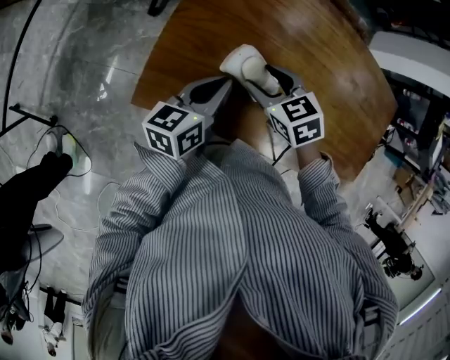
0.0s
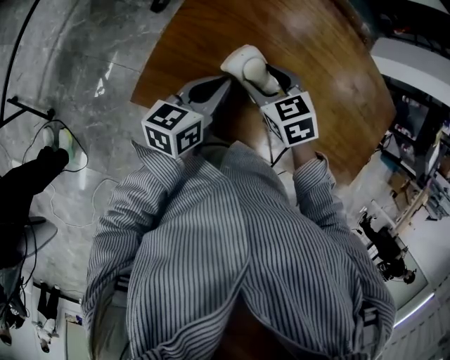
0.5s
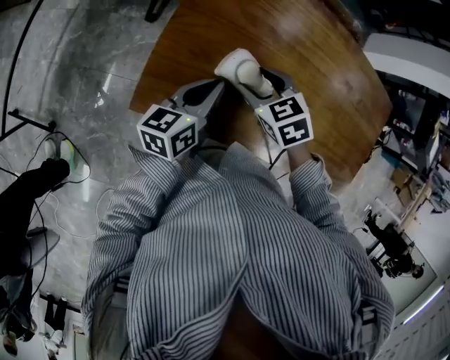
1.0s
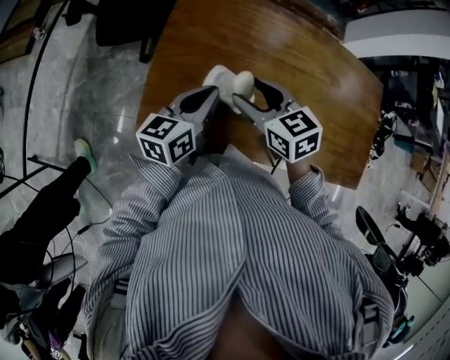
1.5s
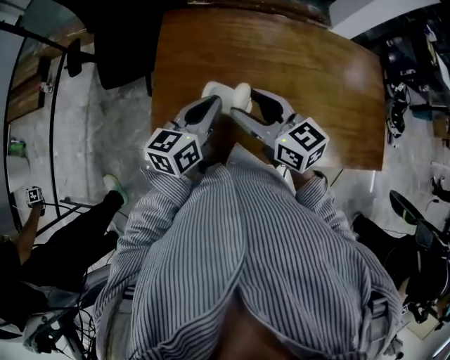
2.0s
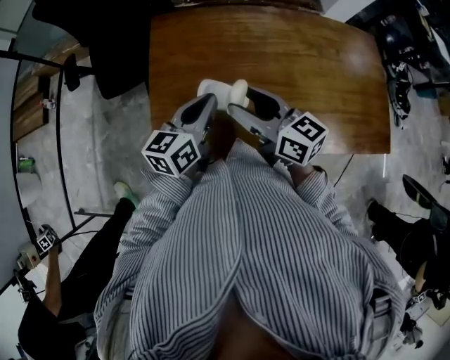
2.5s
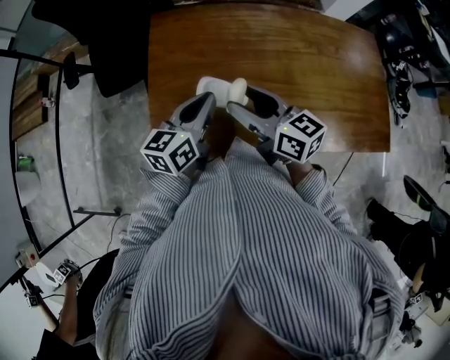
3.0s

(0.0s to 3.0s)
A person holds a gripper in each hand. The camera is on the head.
0.0s - 1.5s: The left gripper moves upward, some 5 cm; the right gripper heads upward, covering roughly 10 cm, and rotates some 20 degrees.
1.5s - 3.0s: The right gripper changes place by some 5 cm, and swivels some 40 degrees.

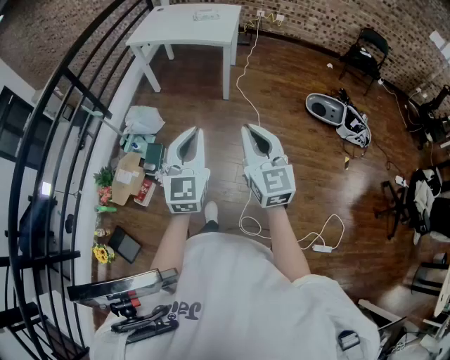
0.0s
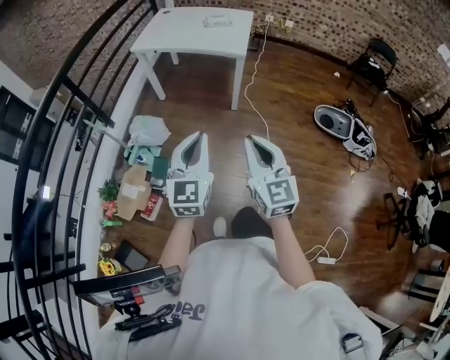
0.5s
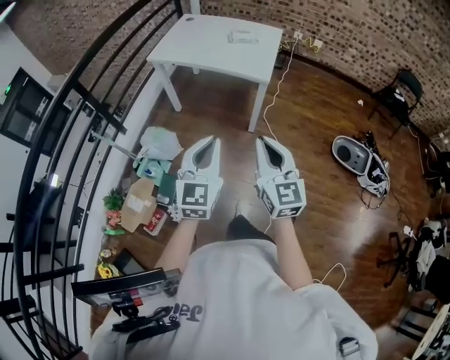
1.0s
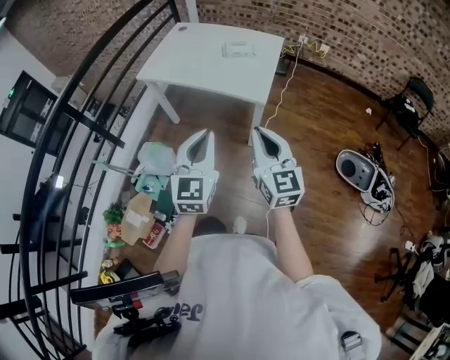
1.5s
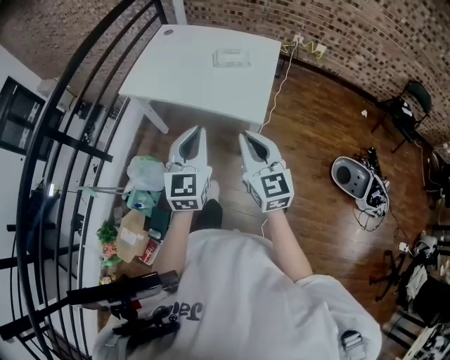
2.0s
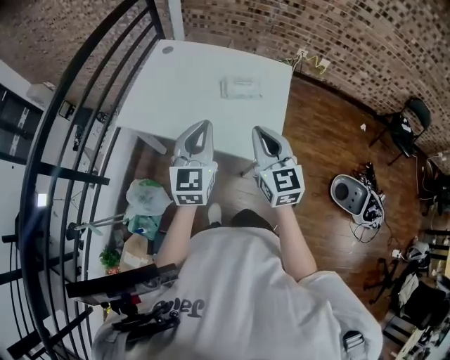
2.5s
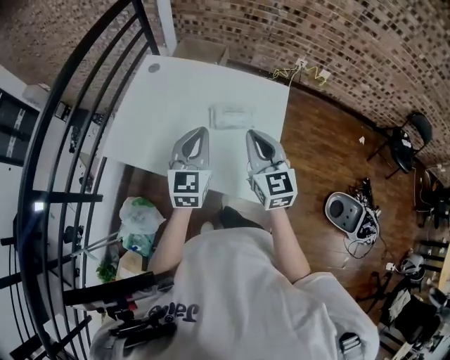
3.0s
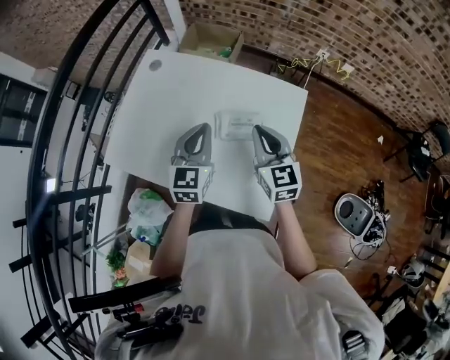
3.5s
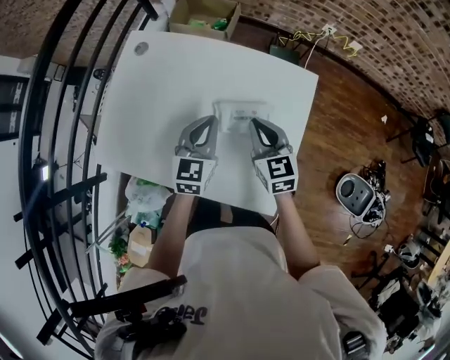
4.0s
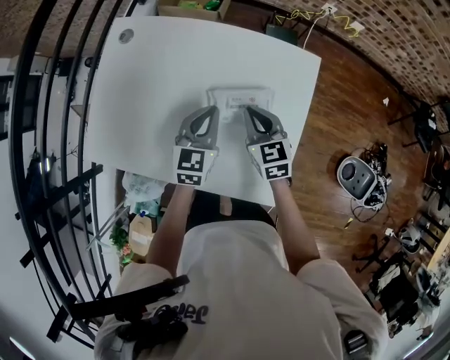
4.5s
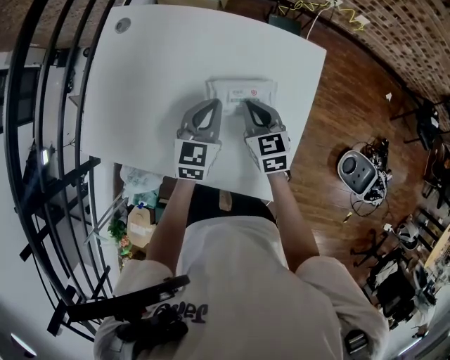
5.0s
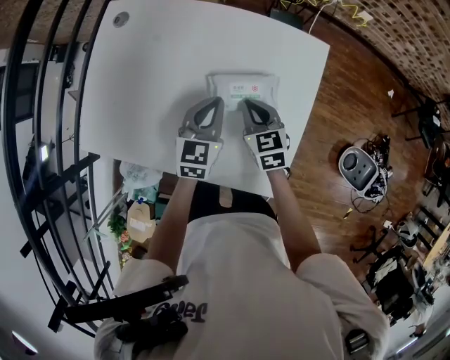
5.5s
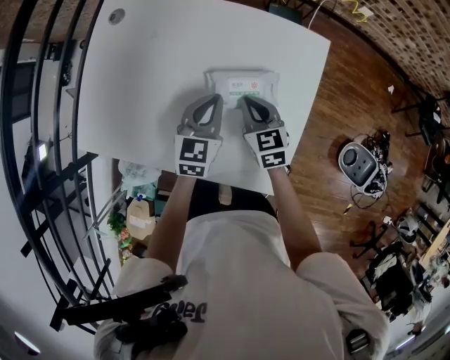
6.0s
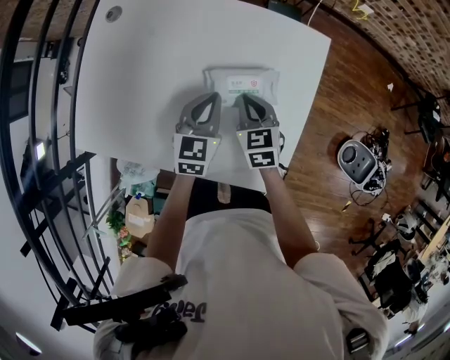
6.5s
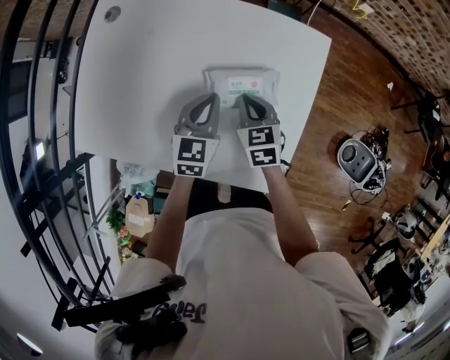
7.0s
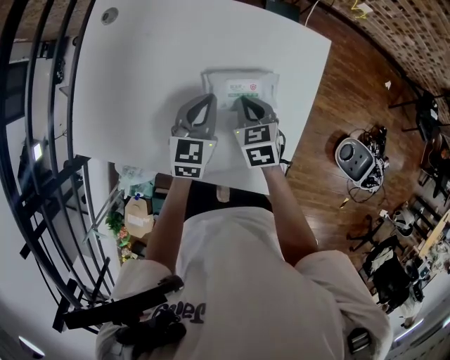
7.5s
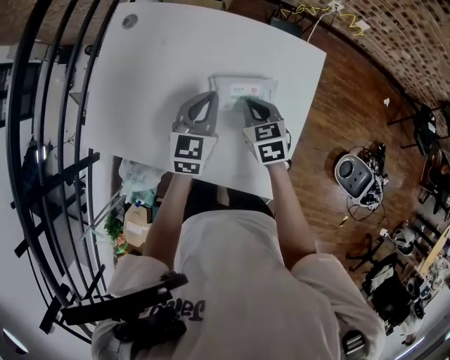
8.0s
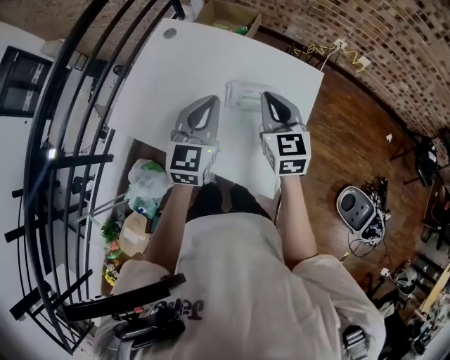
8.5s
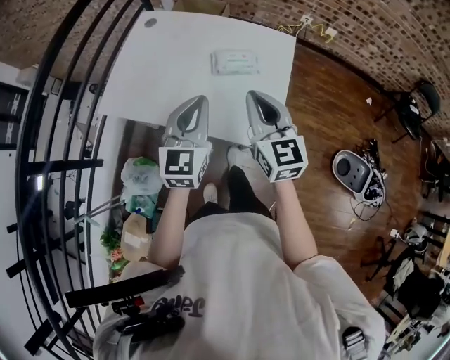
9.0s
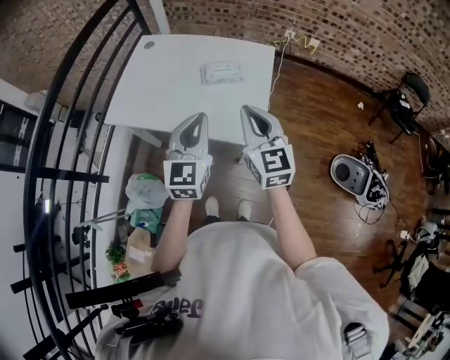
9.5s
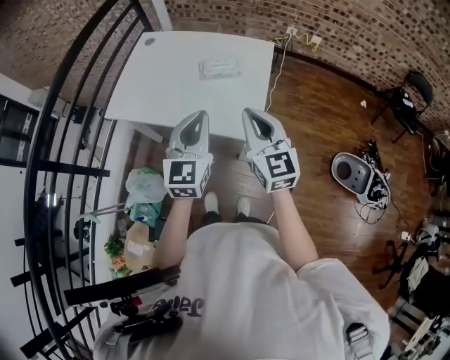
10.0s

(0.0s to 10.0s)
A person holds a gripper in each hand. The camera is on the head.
0.0s - 2.0s: The pair of grippers is taken forward, about 70 cm.
2.0s - 4.0s: The pair of grippers is taken forward, approximately 50 cm. The right gripper turns by some 20 degrees.
4.0s - 6.0s: The grippers both shift downward by about 10 cm.
6.0s - 8.0s: The left gripper ends up roughly 5 cm from where it was.
8.0s - 10.0s: Both grippers move backward and upward, approximately 40 cm. The left gripper changes its angle by some 20 degrees. Meanwhile the right gripper angles its fingers upward, by some 40 degrees.

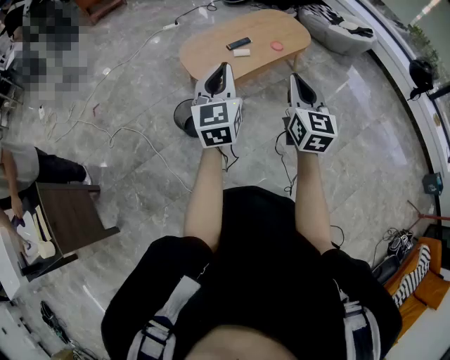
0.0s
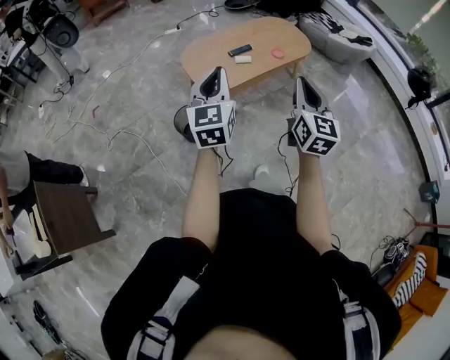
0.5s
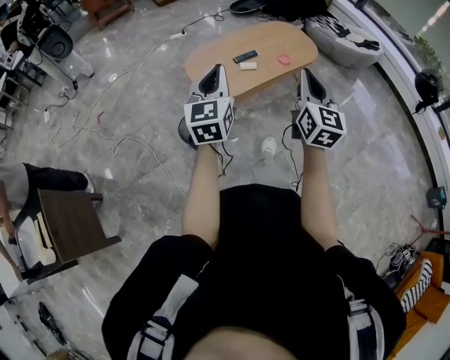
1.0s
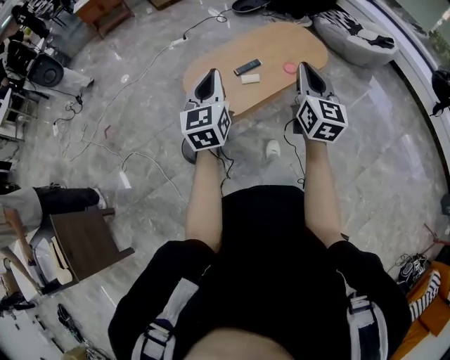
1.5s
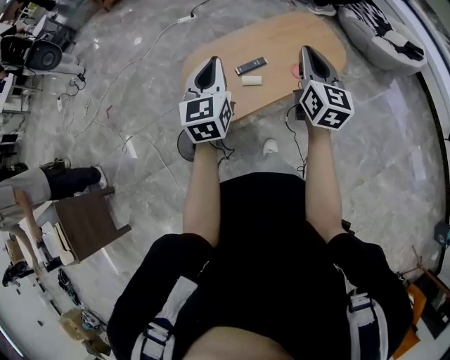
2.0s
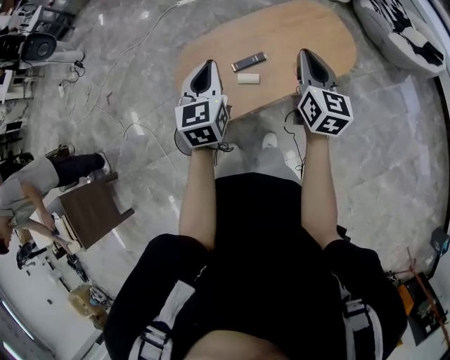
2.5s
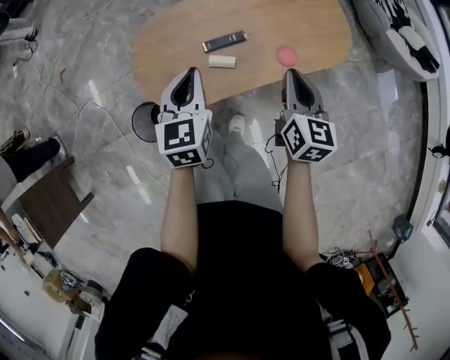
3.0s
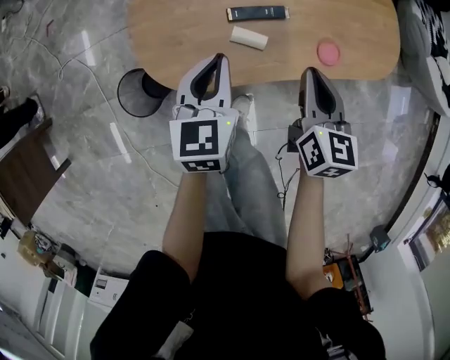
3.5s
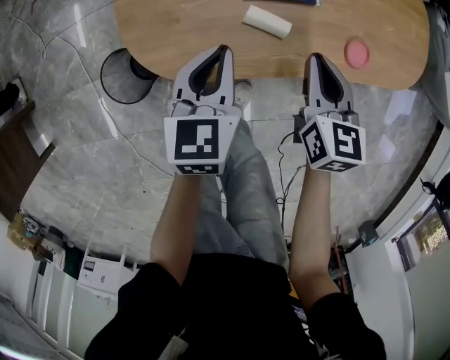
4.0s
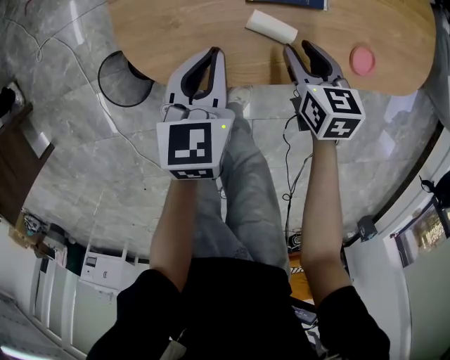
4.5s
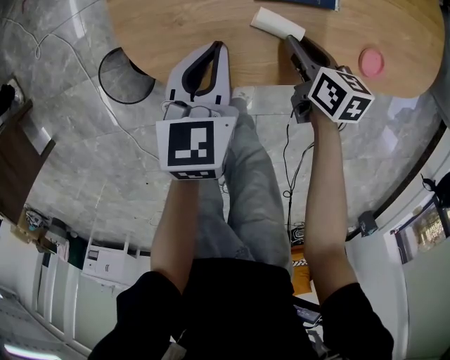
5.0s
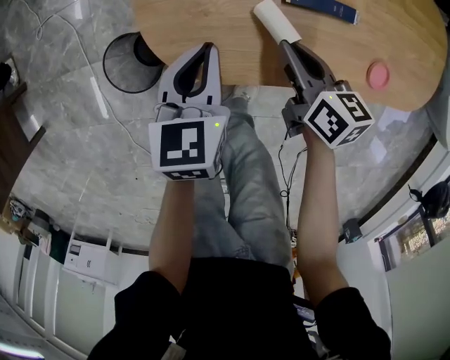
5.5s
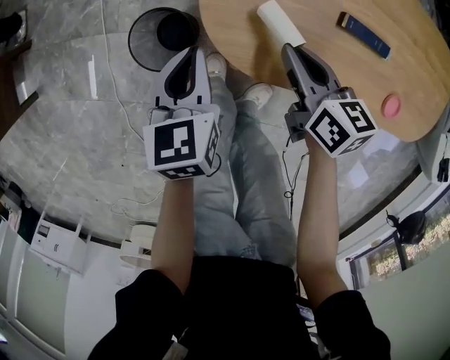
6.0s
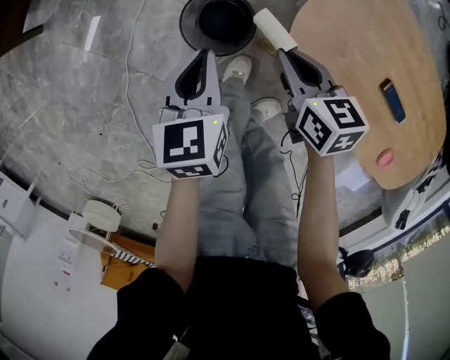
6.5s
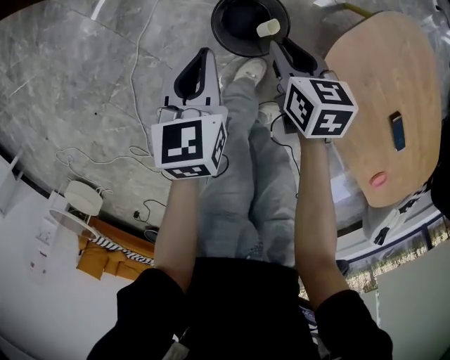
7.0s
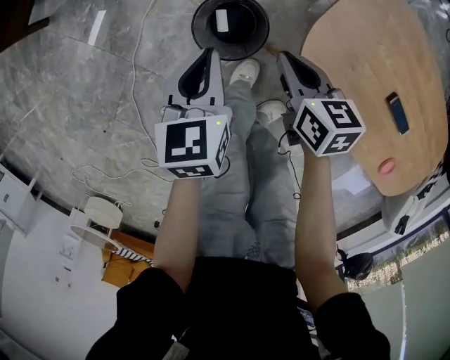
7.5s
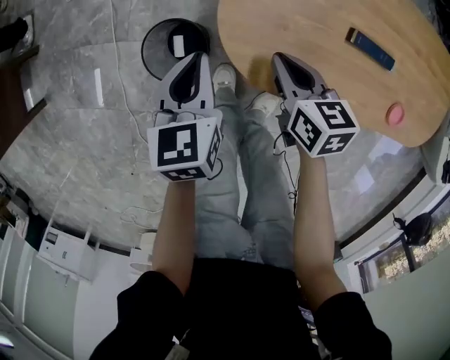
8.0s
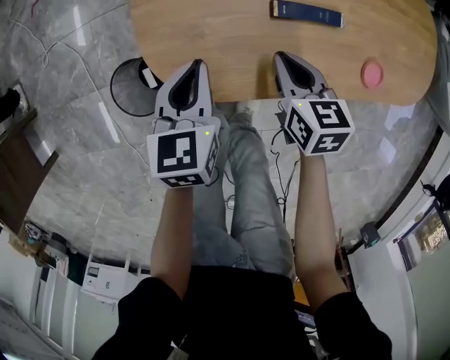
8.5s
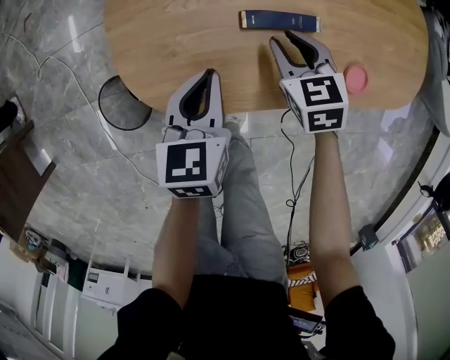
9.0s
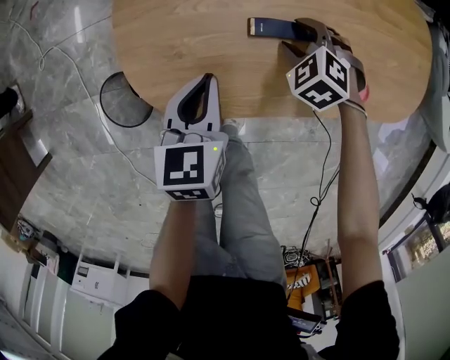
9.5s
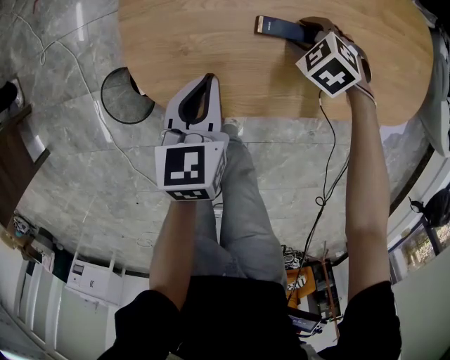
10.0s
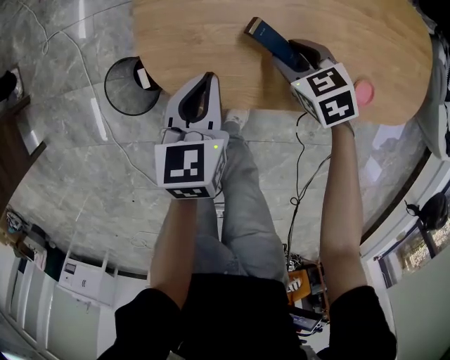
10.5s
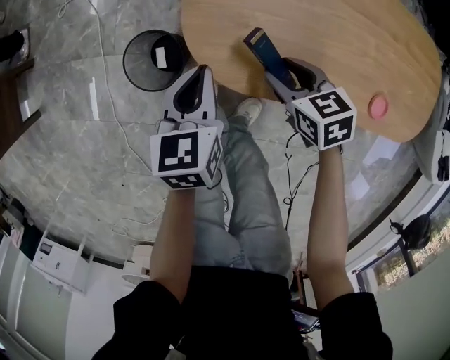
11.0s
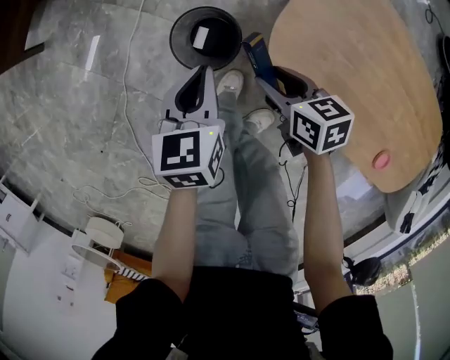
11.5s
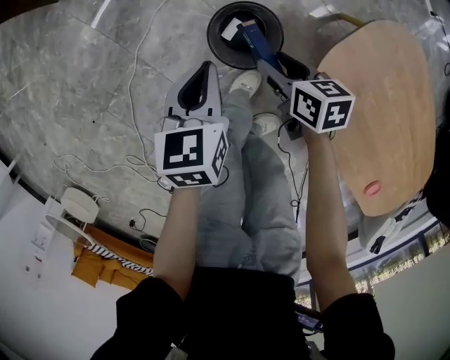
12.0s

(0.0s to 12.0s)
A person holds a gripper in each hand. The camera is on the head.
0.0s - 2.0s: The two grippers travel together, forward, roughly 40 cm.
2.0s - 4.0s: Both grippers move downward, some 40 cm. The left gripper rotates about 30 degrees. The right gripper tilts its fingers approximately 30 degrees downward.
4.0s - 6.0s: The right gripper shifts by some 25 cm, changes its angle by approximately 40 degrees, and opens, then closes once more, while the left gripper ends up approximately 25 cm from where it was, and changes its angle by roughly 30 degrees.
8.0s - 10.0s: The two grippers go about 25 cm to the right. The right gripper rotates around the line of its fingers by roughly 50 degrees, counterclockwise from behind, and opens up.
10.0s - 12.0s: Both grippers are carried roughly 50 cm. The left gripper rotates some 50 degrees, while the right gripper changes its angle by roughly 50 degrees.

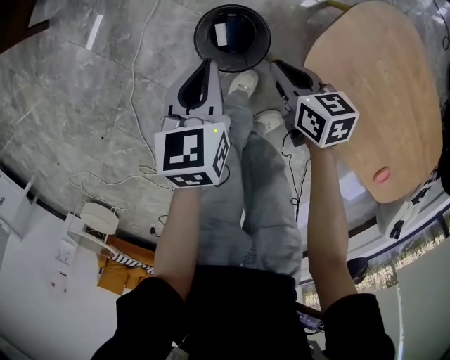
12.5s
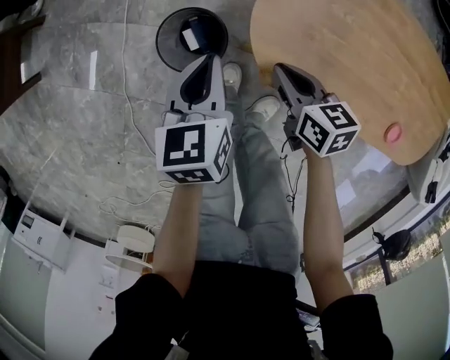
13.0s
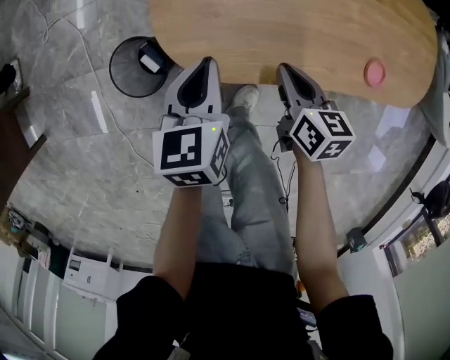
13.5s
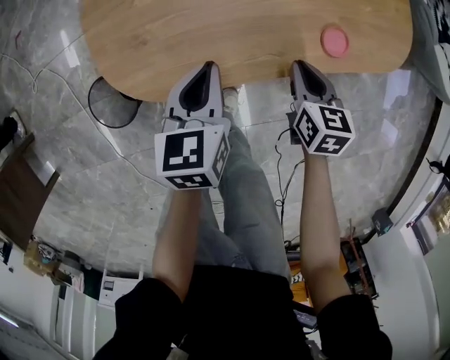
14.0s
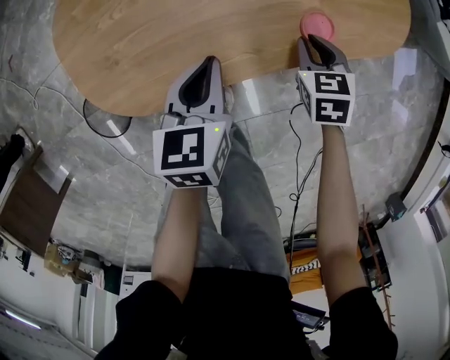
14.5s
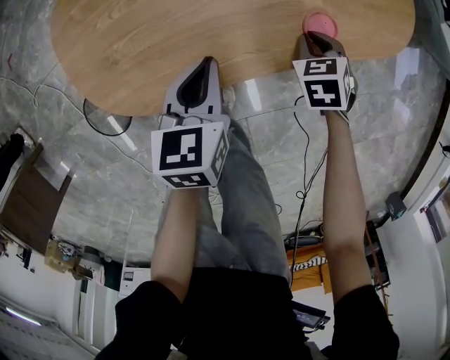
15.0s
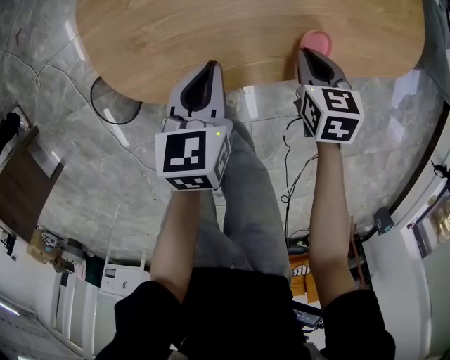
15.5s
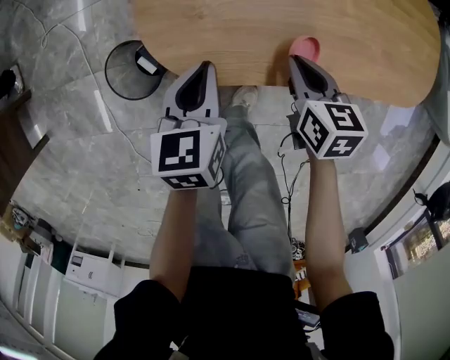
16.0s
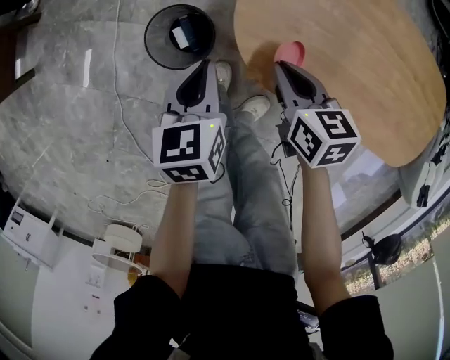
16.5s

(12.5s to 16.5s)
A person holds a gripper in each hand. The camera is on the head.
12.5s - 14.5s: The two grippers travel together, about 60 cm. The right gripper changes its angle by approximately 60 degrees. The left gripper rotates about 60 degrees.
14.5s - 16.5s: The left gripper changes place by approximately 40 cm, and changes its angle by roughly 40 degrees, while the right gripper ends up about 50 cm from where it was, and changes its angle by approximately 40 degrees.
